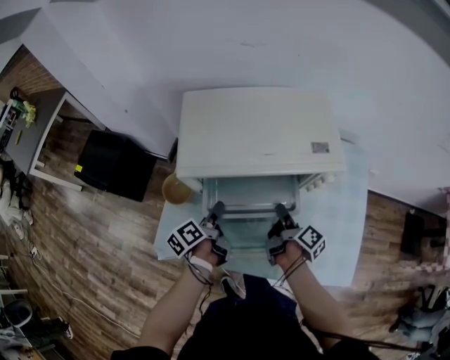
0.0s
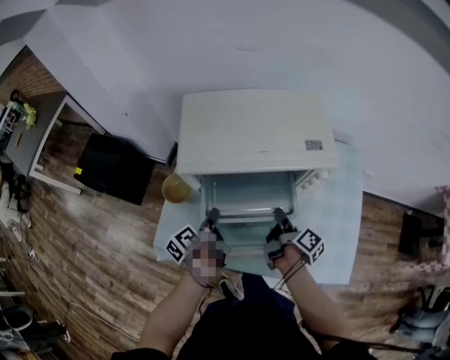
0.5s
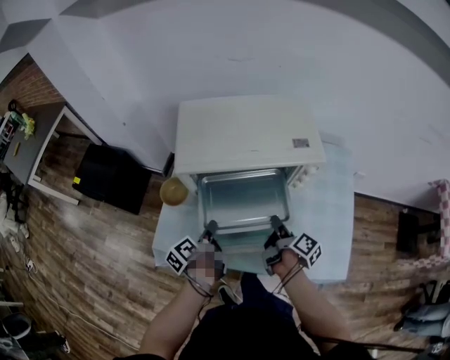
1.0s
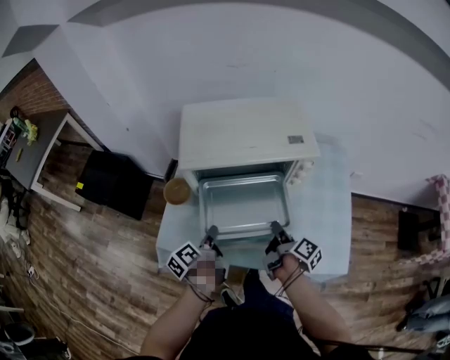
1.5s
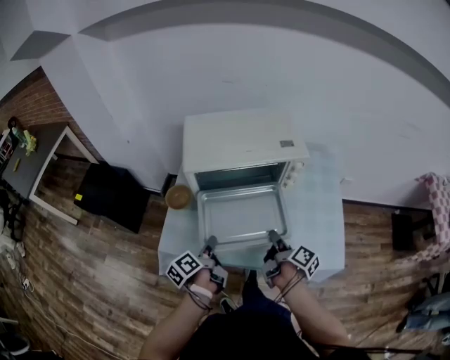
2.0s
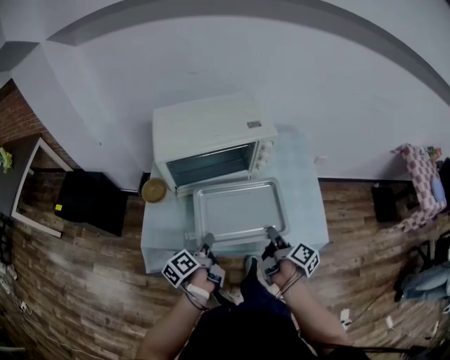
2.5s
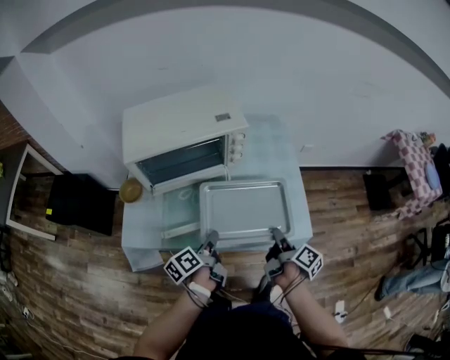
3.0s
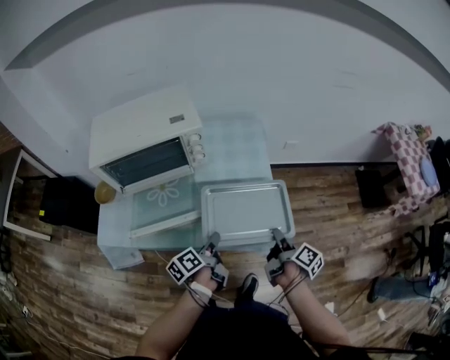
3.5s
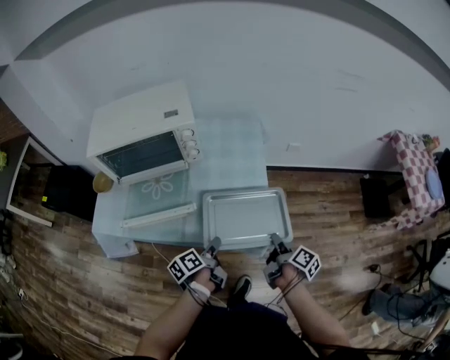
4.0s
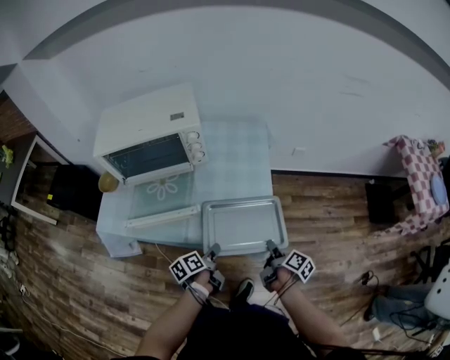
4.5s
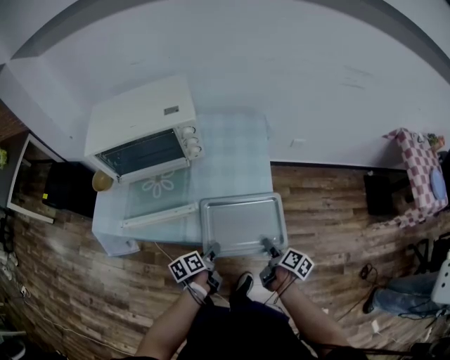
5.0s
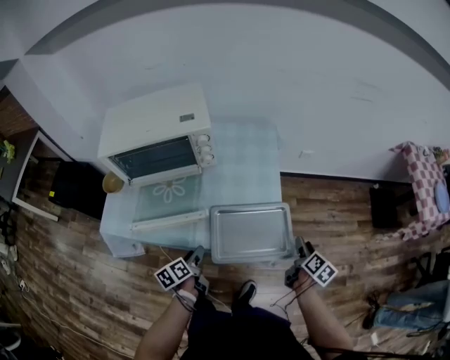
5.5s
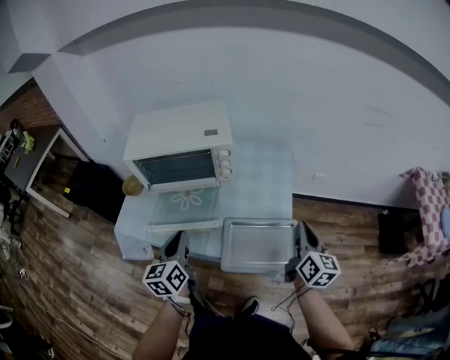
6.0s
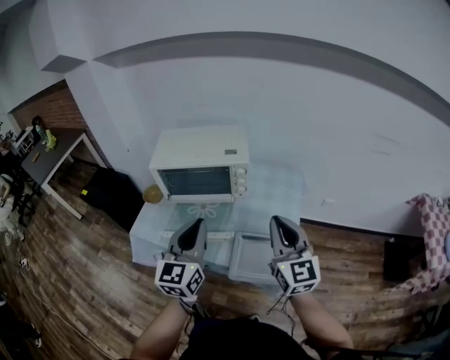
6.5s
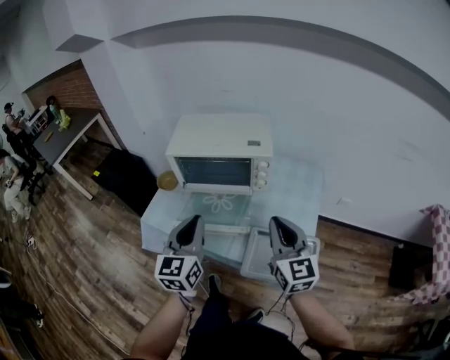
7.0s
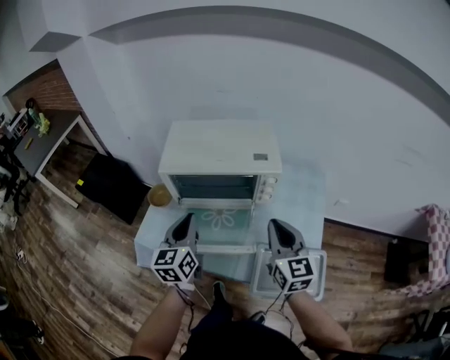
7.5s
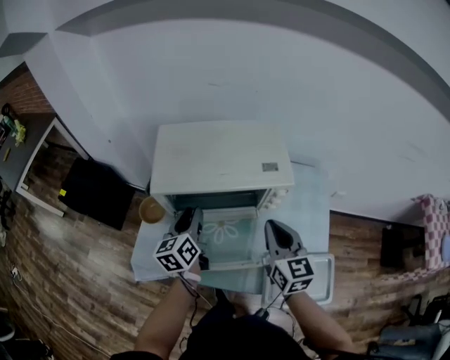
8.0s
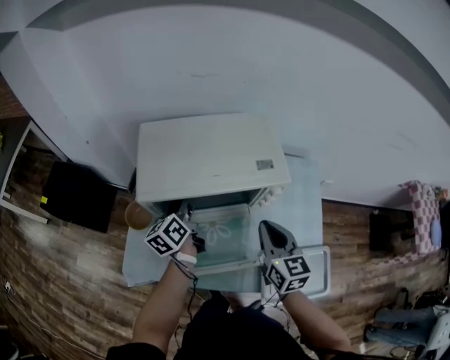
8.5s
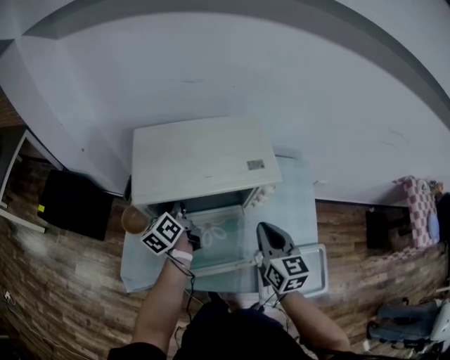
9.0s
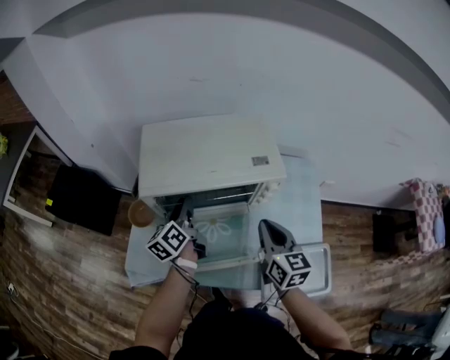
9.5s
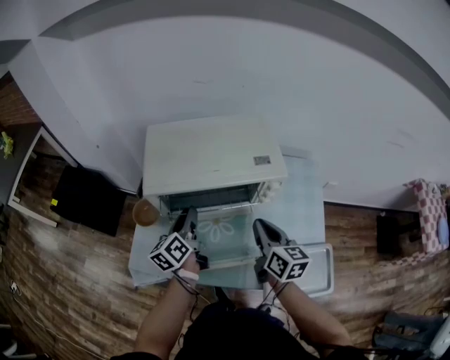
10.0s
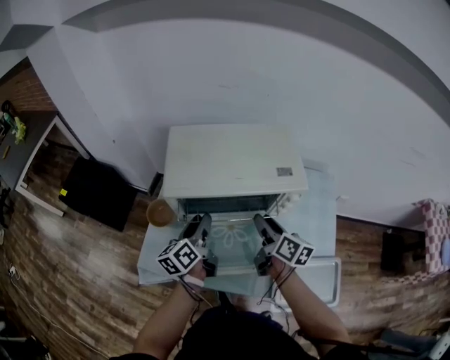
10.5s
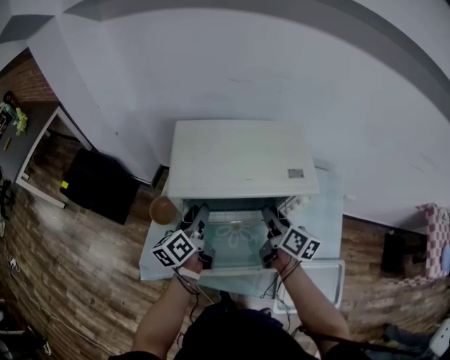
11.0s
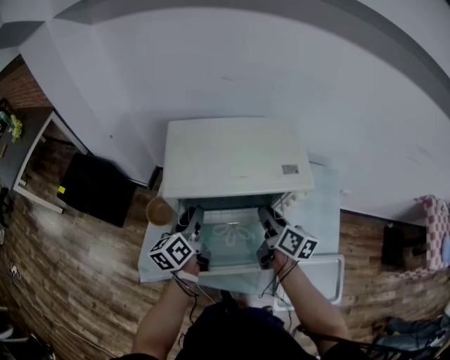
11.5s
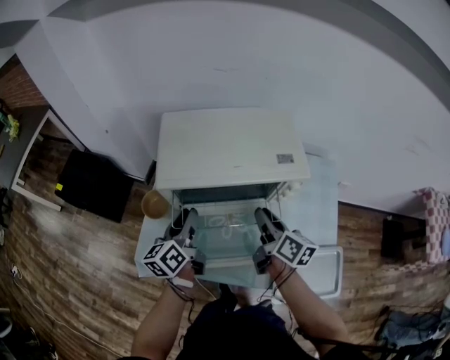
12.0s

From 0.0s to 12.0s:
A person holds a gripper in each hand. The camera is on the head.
From 0.0s to 2.0s: The two grippers go some 15 cm backward.
From 2.0s to 4.0s: The two grippers travel together, to the right, some 40 cm.
From 4.0s to 6.0s: The left gripper shifts some 25 cm upward and to the left, and rotates around the line of its fingers by some 40 degrees, clockwise from behind. Meanwhile the right gripper is displaced upward and forward by roughly 20 cm, twists approximately 50 degrees counterclockwise, seen from behind, and opens and closes again.
From 6.0s to 8.0s: The right gripper moves to the left and forward, some 35 cm, and swivels roughly 30 degrees; the left gripper goes about 30 cm forward and to the left.
From 8.0s to 10.0s: The right gripper heads downward, covering some 5 cm, and swivels some 20 degrees. The left gripper moves about 10 cm forward and comes back.

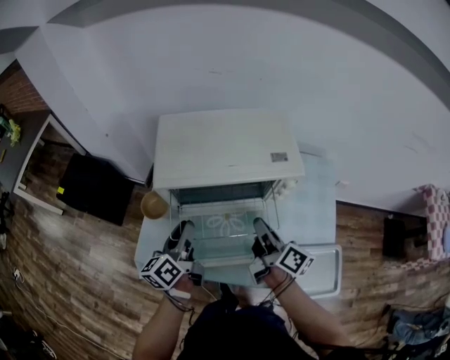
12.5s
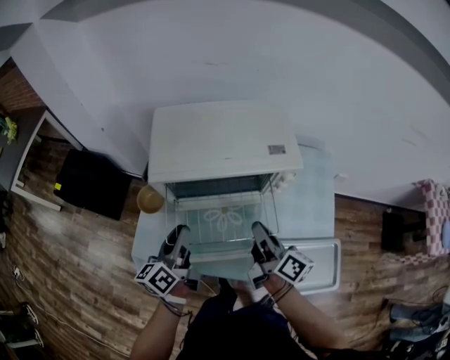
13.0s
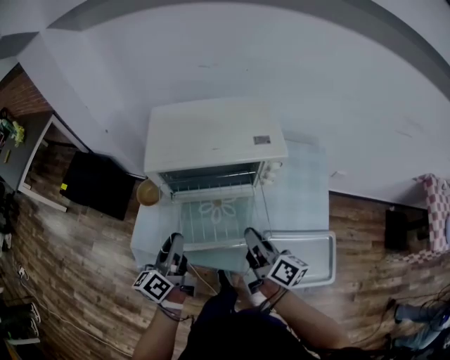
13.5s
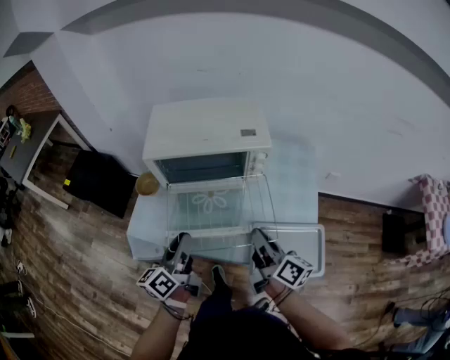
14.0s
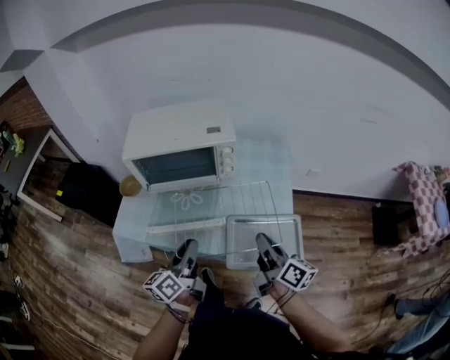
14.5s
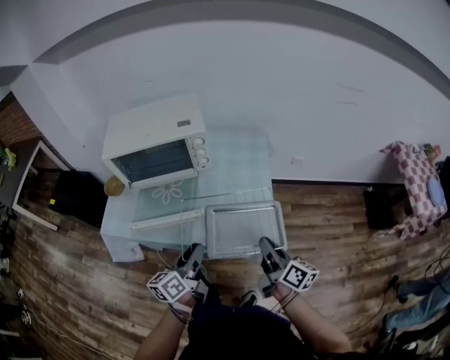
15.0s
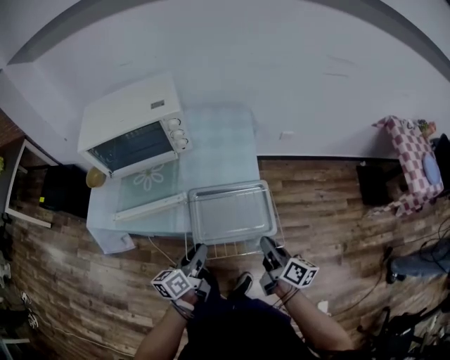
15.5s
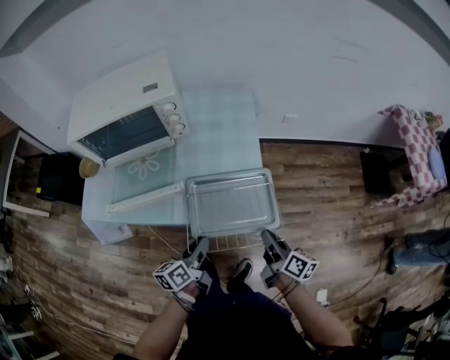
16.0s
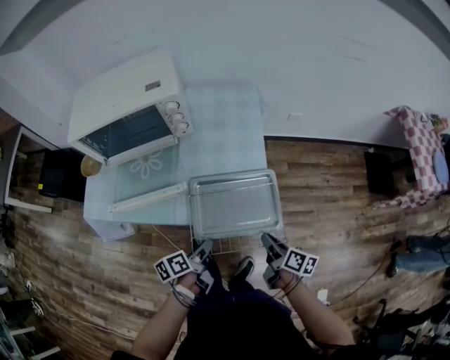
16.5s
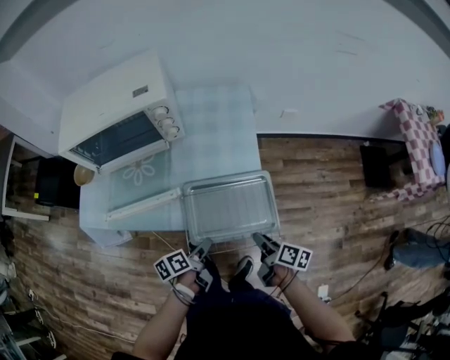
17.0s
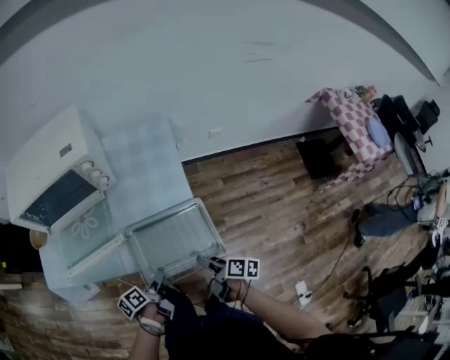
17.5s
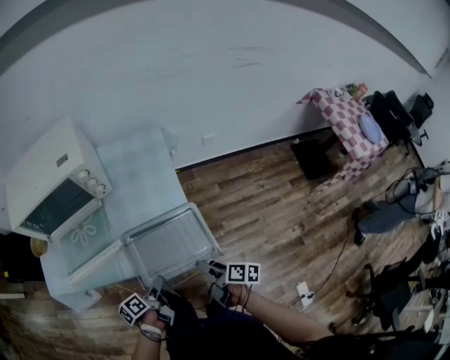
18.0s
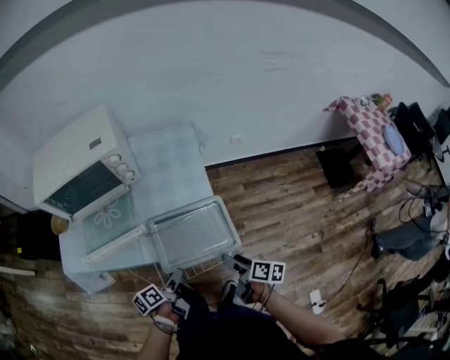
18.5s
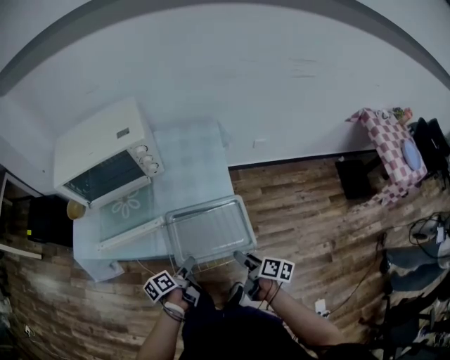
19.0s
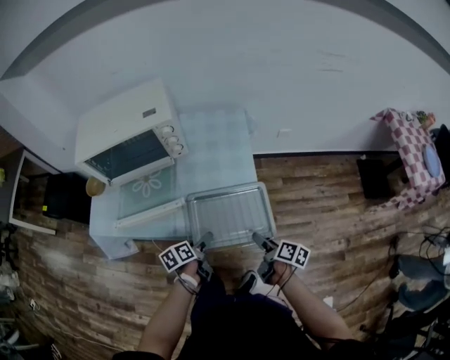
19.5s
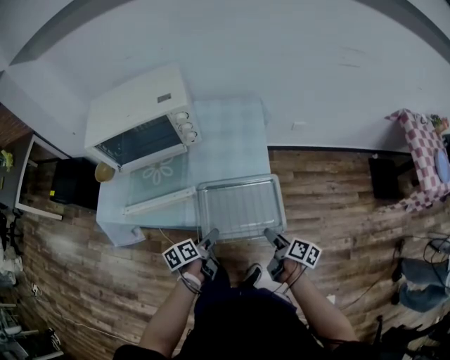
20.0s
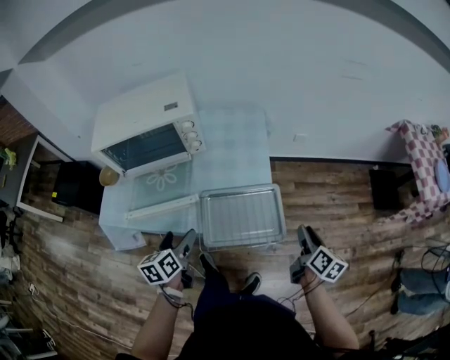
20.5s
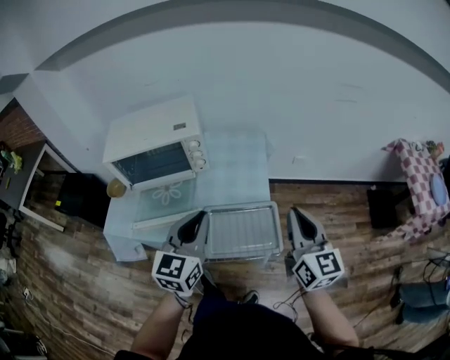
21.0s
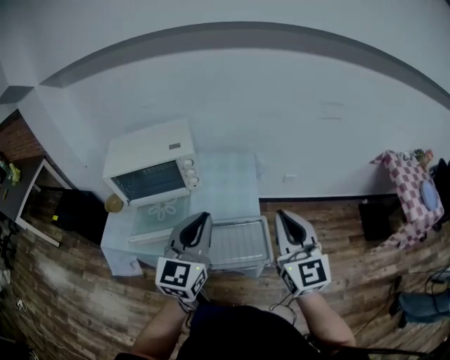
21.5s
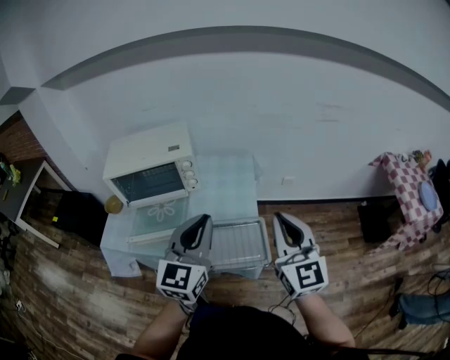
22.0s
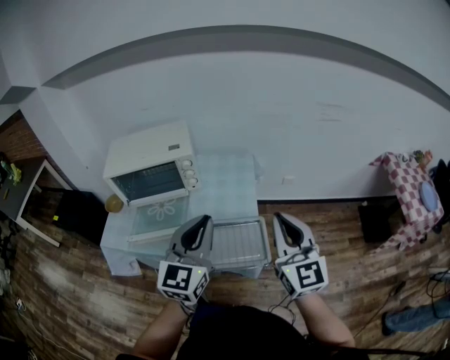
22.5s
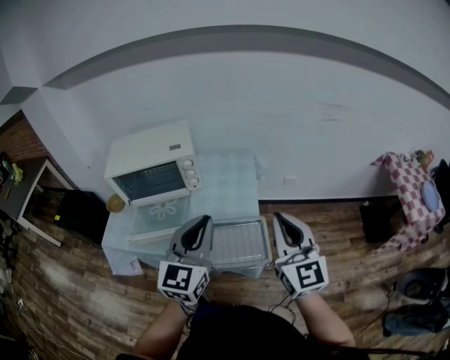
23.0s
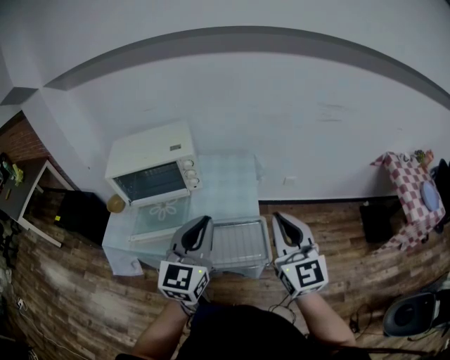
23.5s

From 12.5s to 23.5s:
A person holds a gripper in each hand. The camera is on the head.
From 12.5s to 14.5s: The grippers both shift backward and to the right by approximately 30 cm.
From 14.5s to 16.0s: The right gripper shifts roughly 25 cm to the right, downward and backward, while the left gripper travels to the right and downward by approximately 25 cm, and rotates roughly 20 degrees.
From 16.0s to 18.0s: The two grippers go some 5 cm downward. The right gripper swivels approximately 20 degrees, and opens up; the left gripper rotates roughly 20 degrees, and opens its fingers.
From 18.0s to 20.0s: The grippers make only small movements.
From 20.0s to 21.5s: Both grippers travel together upward, approximately 40 cm. The right gripper rotates around the line of its fingers by about 80 degrees, counterclockwise from behind, and closes its fingers, while the left gripper twists roughly 70 degrees clockwise, seen from behind, and closes its fingers.
From 21.5s to 23.5s: The grippers move only a little.

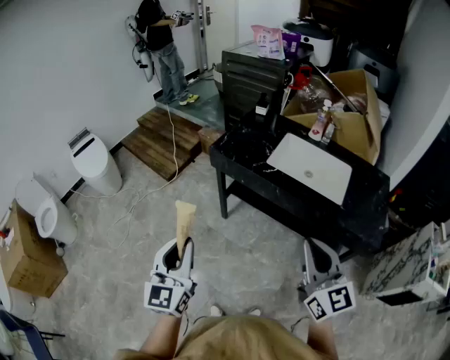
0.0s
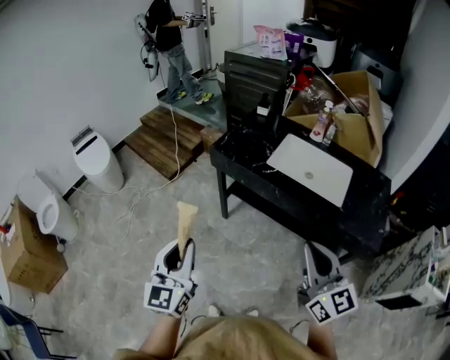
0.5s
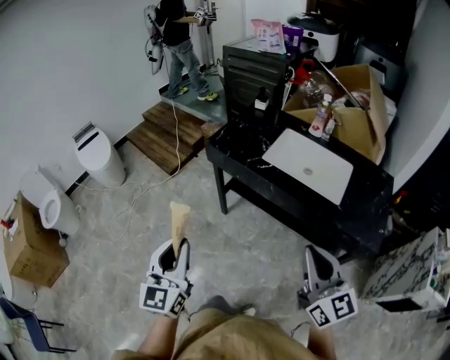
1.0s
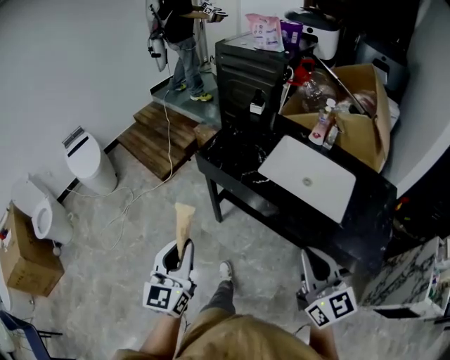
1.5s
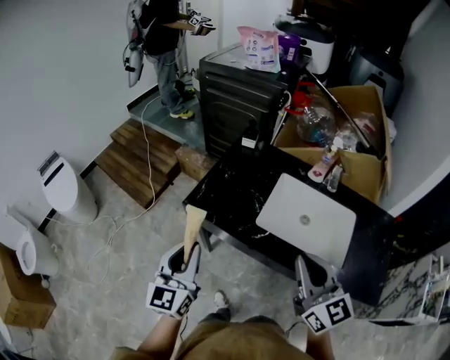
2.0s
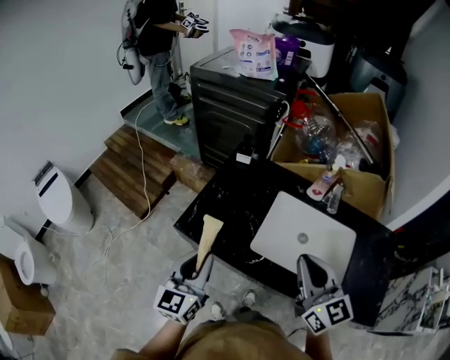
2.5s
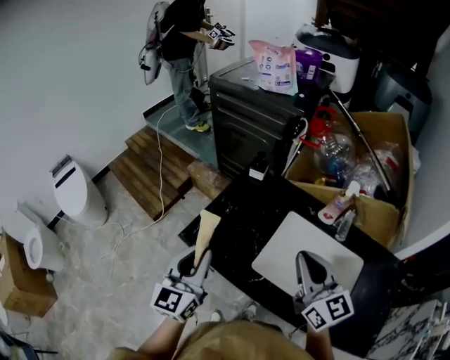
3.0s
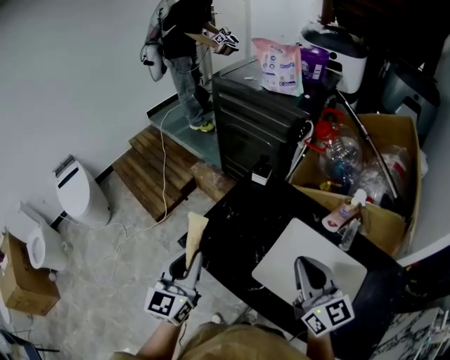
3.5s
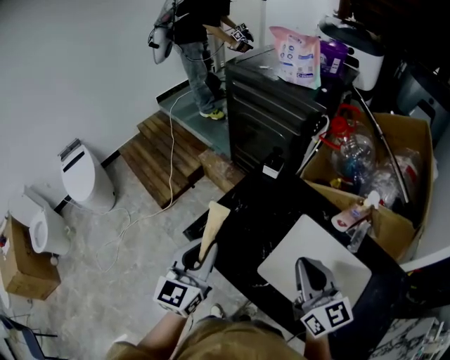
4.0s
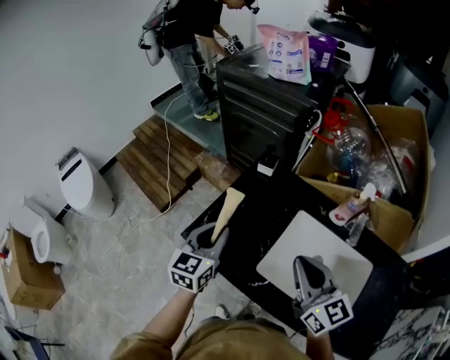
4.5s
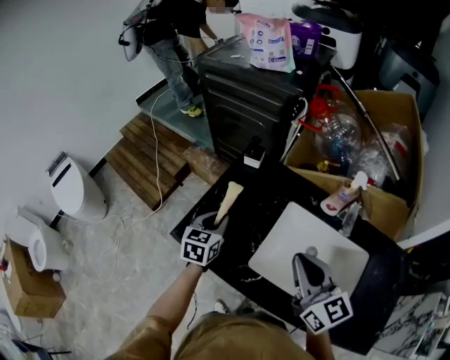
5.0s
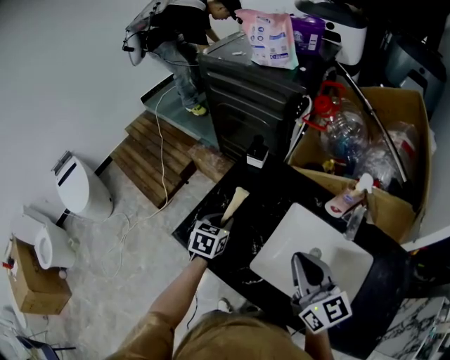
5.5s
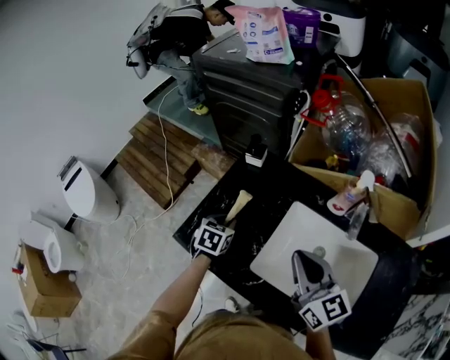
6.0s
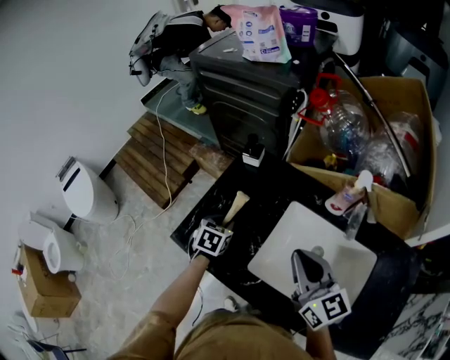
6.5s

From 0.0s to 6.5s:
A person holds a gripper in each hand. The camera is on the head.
From 0.0s to 2.0s: Both grippers travel together forward, some 35 cm.
From 2.0s to 4.5s: The left gripper shifts roughly 25 cm forward and to the right, while the right gripper shifts roughly 20 cm forward.
From 4.5s to 6.5s: The right gripper travels to the right by some 5 cm. The left gripper goes about 20 cm downward and forward, and tilts its fingers approximately 40 degrees downward.
